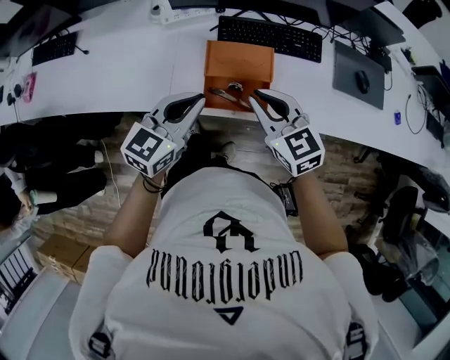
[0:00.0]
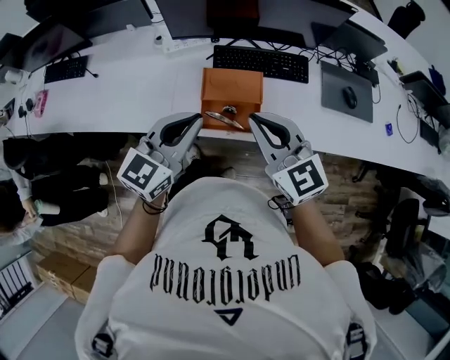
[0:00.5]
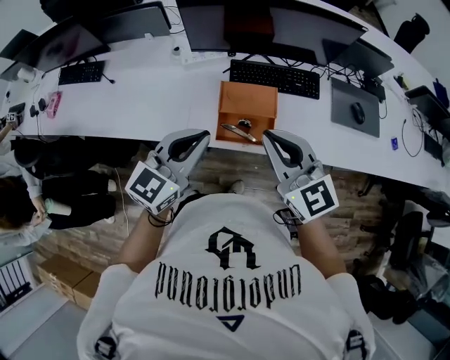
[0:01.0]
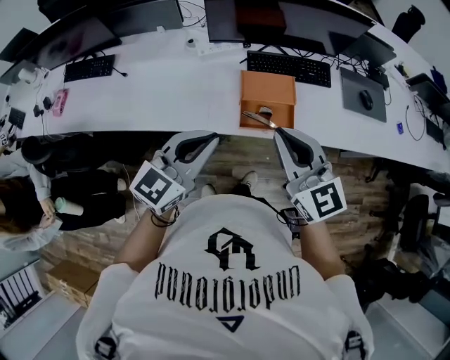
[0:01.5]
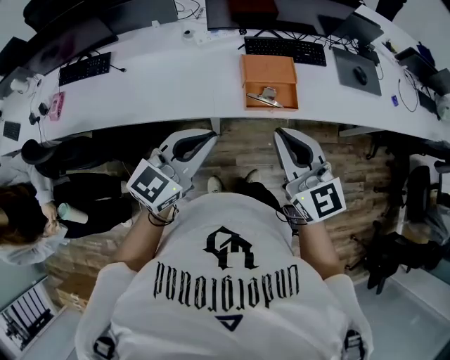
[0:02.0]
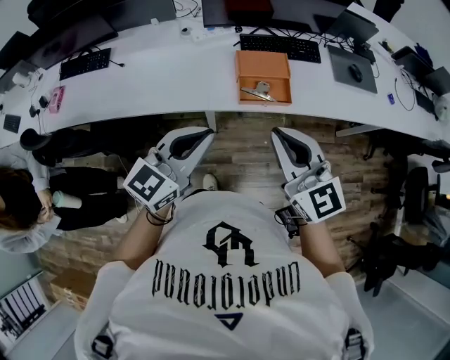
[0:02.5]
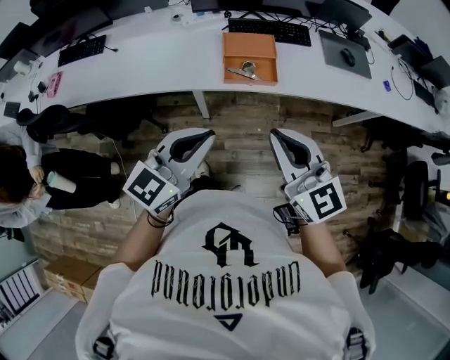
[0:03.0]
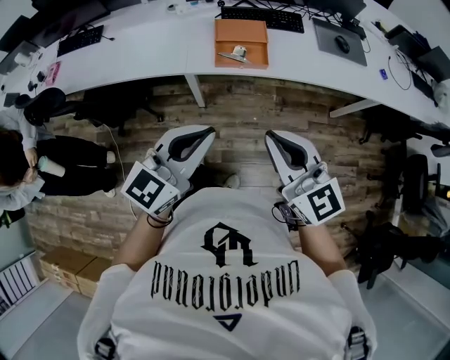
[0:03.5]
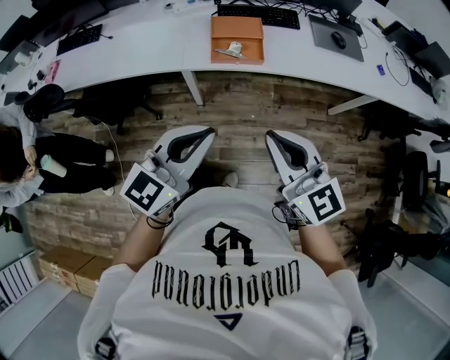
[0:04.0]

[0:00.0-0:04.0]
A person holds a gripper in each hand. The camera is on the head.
0:00.0 to 0:02.0: The left gripper heads backward, to the left and upward, covering roughly 25 cm; the right gripper travels backward, upward and to the left by roughly 25 cm, and changes its angle by approximately 20 degrees.
0:02.0 to 0:04.0: The two grippers go approximately 30 cm backward and to the right.

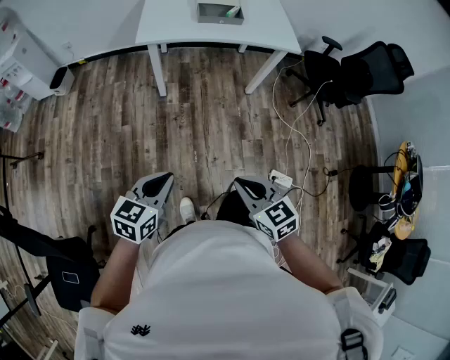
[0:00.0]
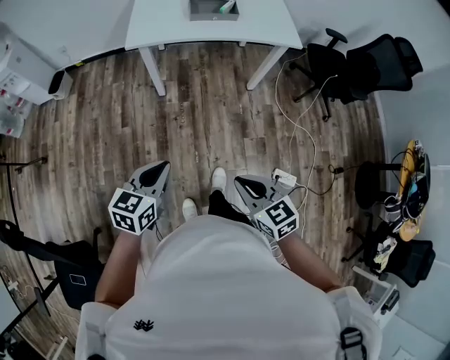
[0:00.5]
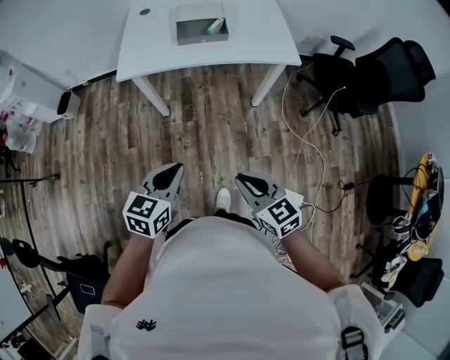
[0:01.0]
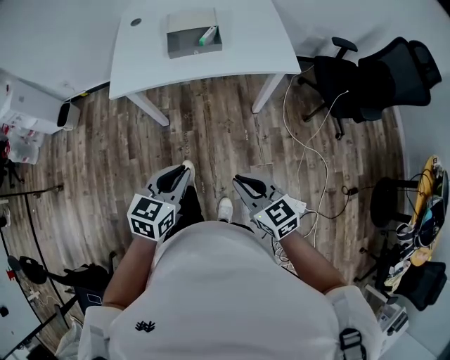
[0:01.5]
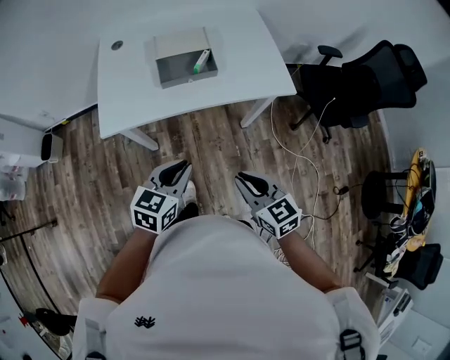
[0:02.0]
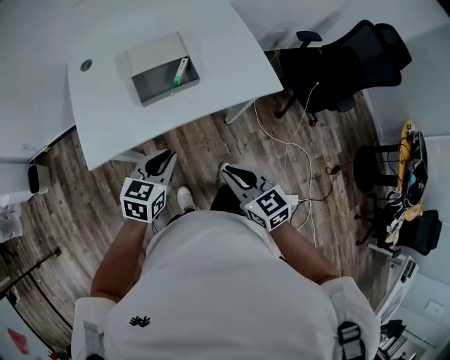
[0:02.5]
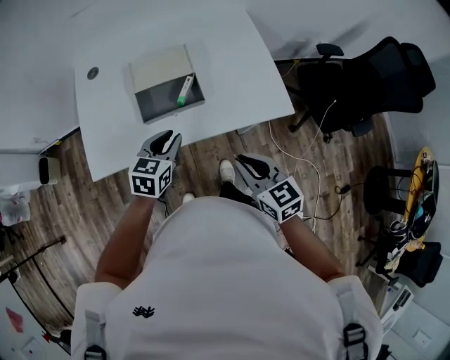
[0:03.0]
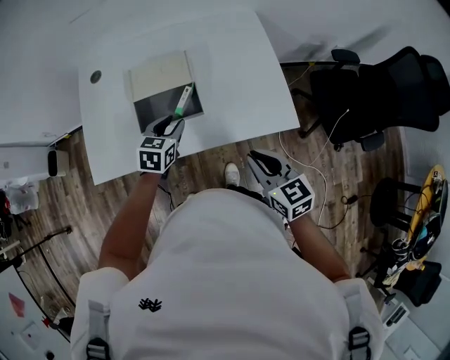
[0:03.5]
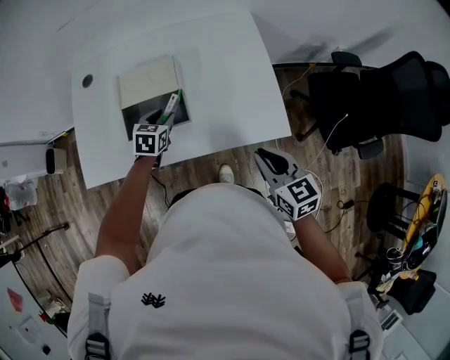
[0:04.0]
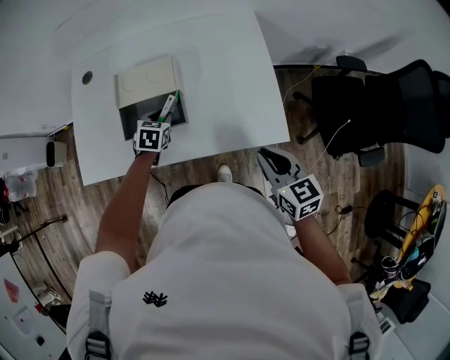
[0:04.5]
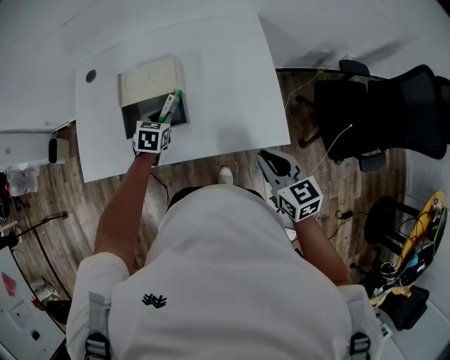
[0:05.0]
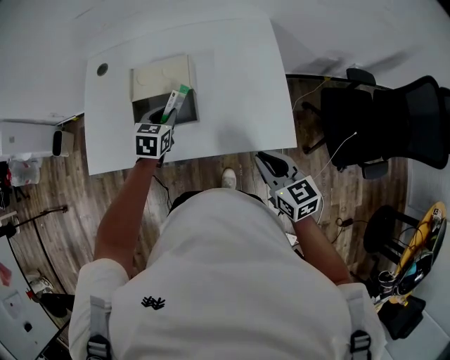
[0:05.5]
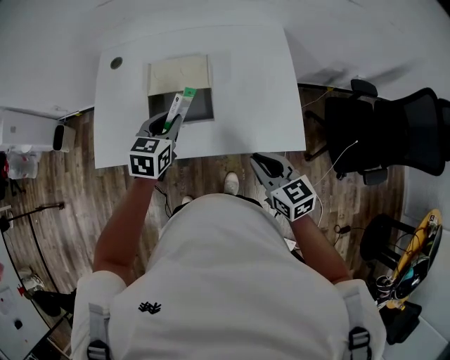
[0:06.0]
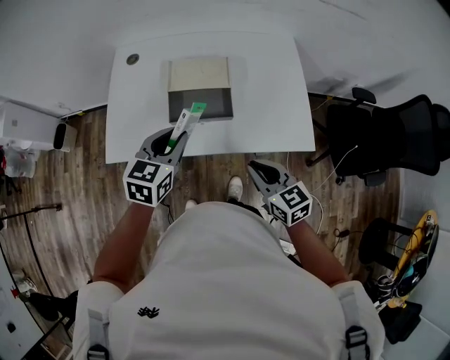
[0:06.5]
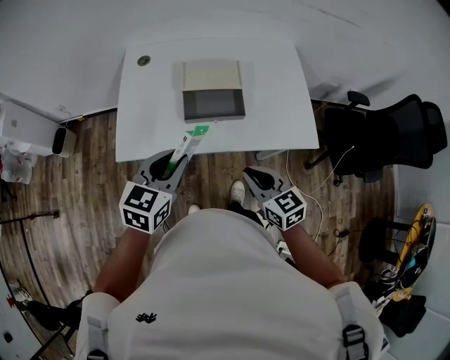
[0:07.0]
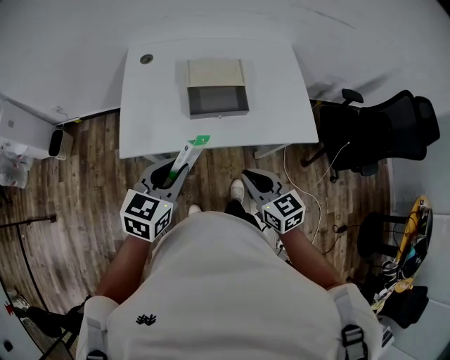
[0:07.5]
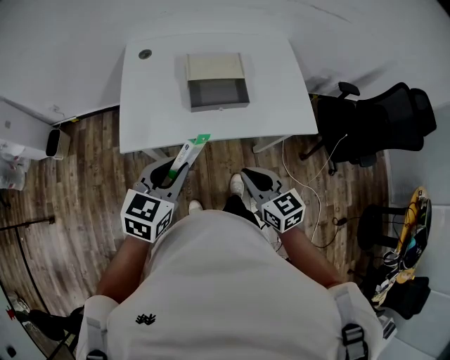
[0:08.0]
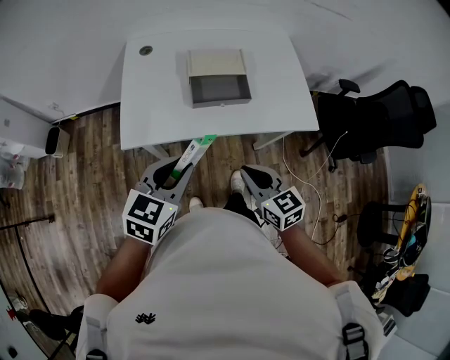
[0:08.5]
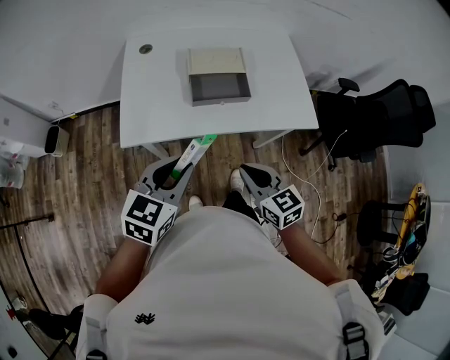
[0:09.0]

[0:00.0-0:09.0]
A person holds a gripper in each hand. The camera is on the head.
0:00.0 to 0:02.0: Both grippers travel together forward, about 35 cm.
0:02.0 to 0:04.5: The right gripper shifts approximately 35 cm forward and to the right; the left gripper is displaced forward and downward by approximately 40 cm, and changes its angle by approximately 30 degrees.
0:04.5 to 0:07.0: The right gripper travels to the left by approximately 20 cm. The left gripper travels upward, backward and to the left by roughly 35 cm, and rotates approximately 30 degrees.
0:07.0 to 0:09.0: The right gripper travels backward and to the left by about 10 cm. Meanwhile the left gripper travels backward by approximately 10 cm.

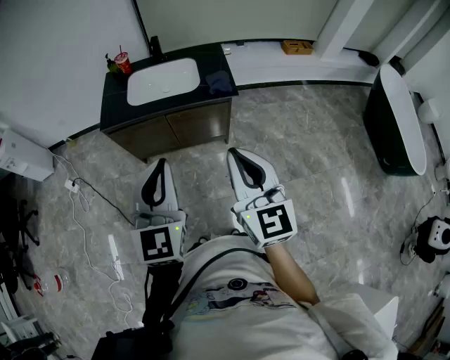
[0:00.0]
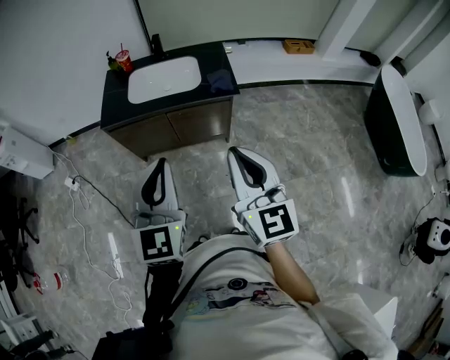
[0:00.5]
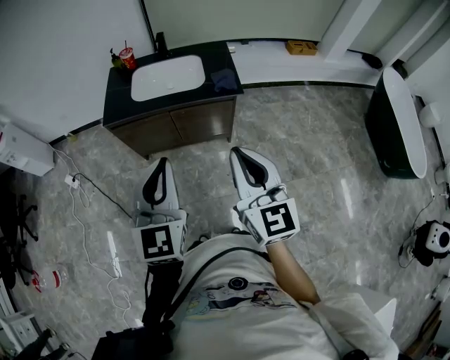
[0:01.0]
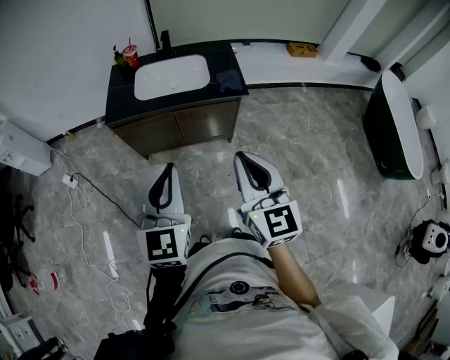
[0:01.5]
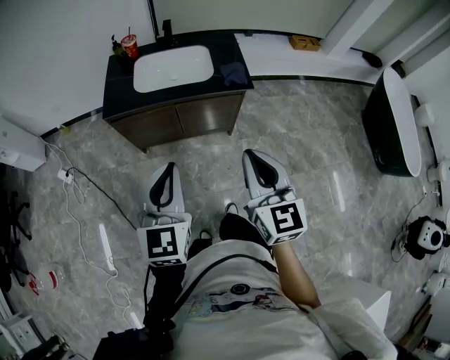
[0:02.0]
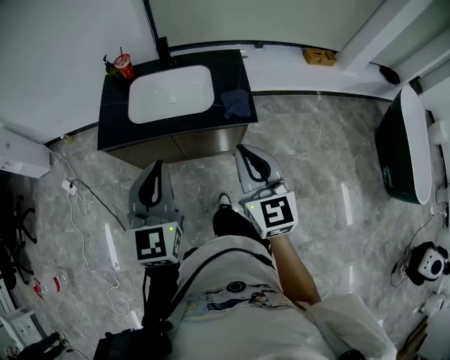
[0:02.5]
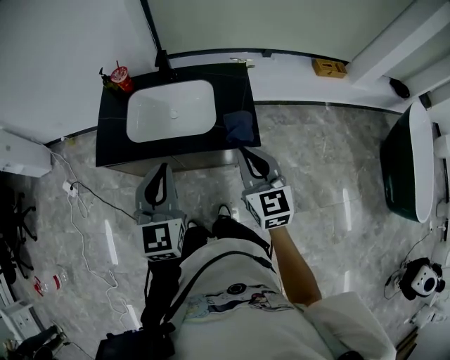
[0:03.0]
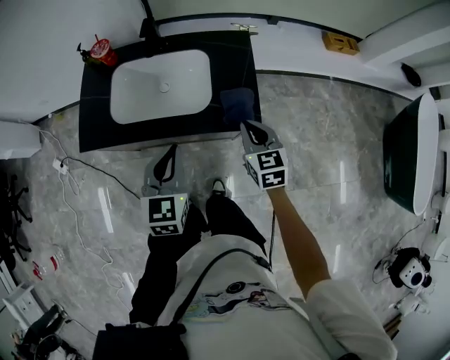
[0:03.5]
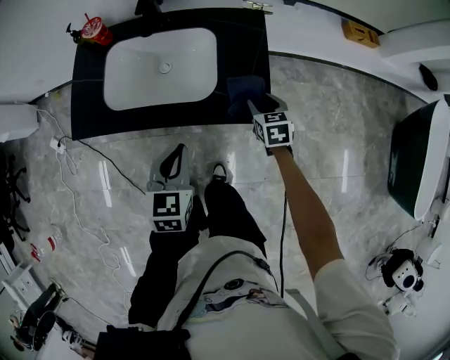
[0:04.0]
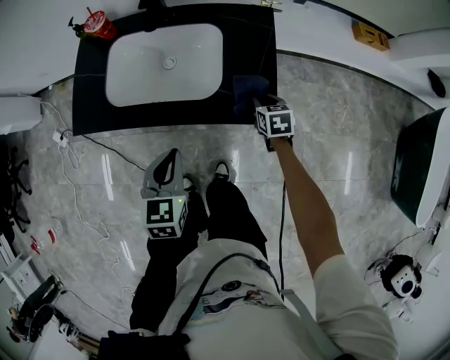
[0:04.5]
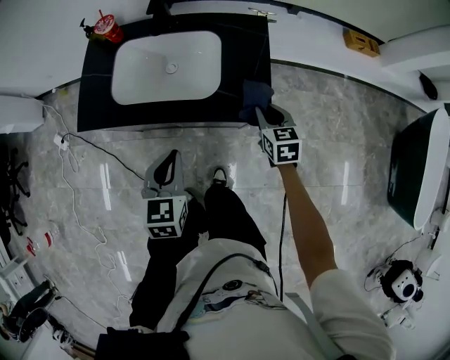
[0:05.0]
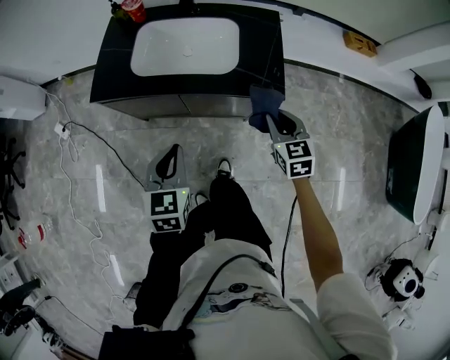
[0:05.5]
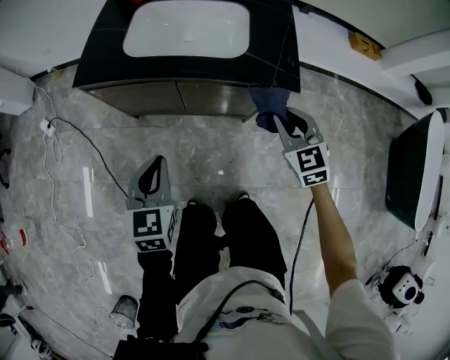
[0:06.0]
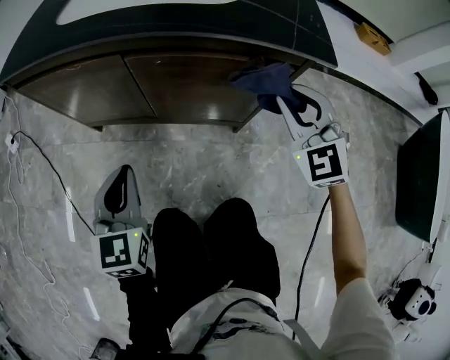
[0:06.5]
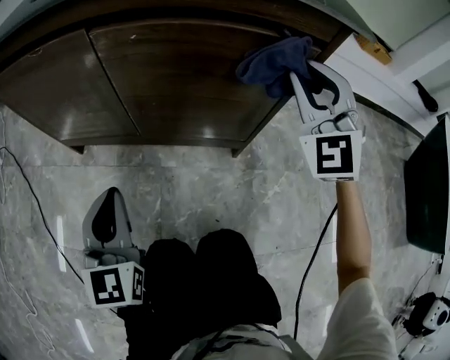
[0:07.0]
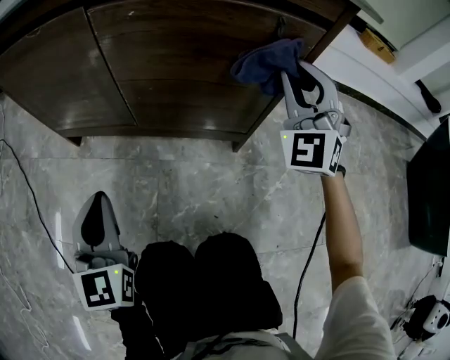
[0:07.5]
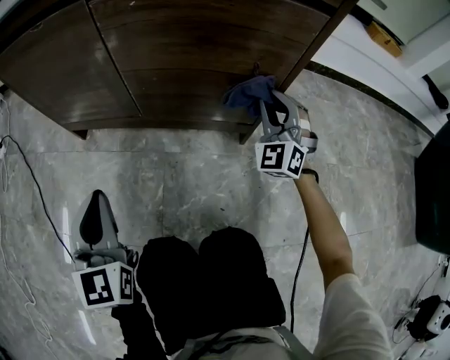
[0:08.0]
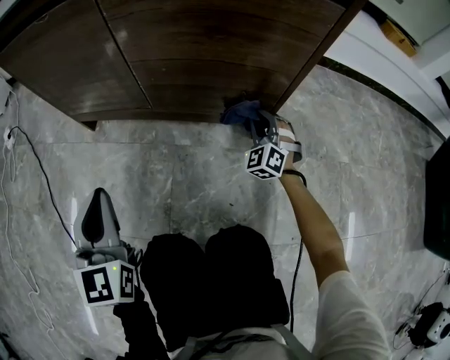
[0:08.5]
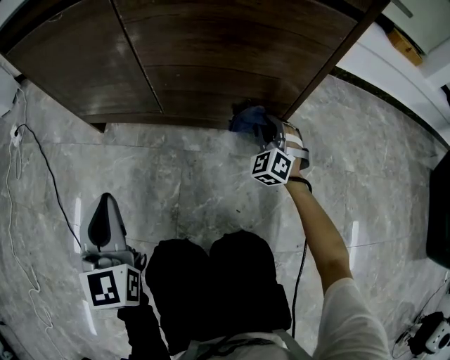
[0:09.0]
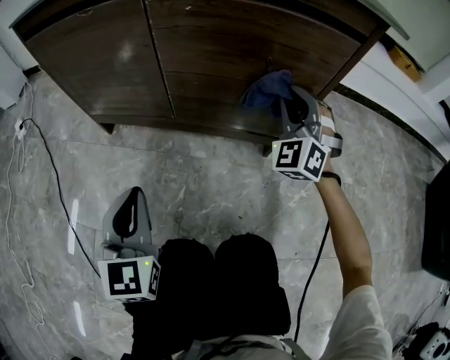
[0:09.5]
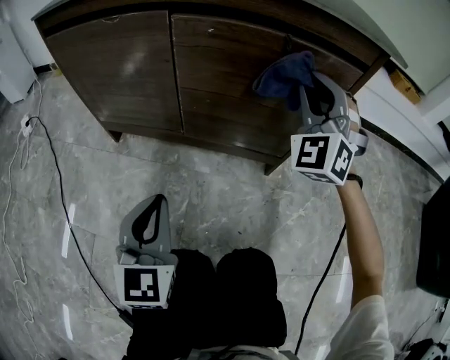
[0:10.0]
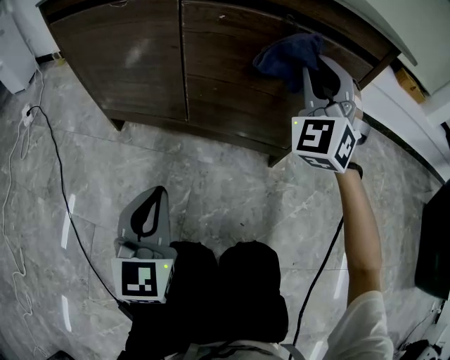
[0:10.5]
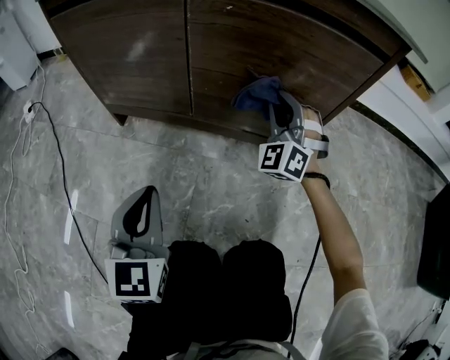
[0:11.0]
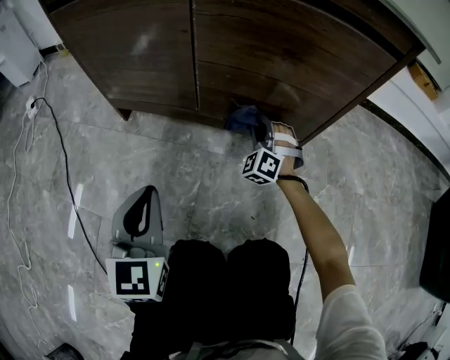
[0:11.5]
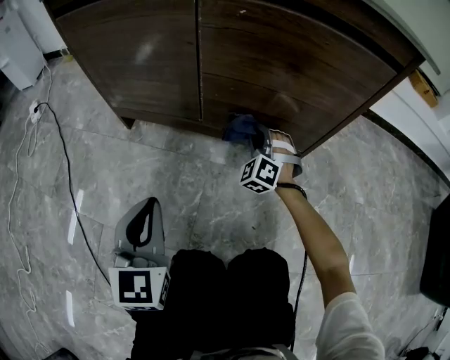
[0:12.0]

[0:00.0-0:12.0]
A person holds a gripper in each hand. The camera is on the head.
0:00.0 to 0:02.0: The right gripper heads downward, covering approximately 5 cm. Meanwhile the left gripper goes approximately 10 cm to the left and downward.
0:02.0 to 0:04.0: The left gripper shifts some 40 cm forward, downward and to the right, and changes its angle by roughly 30 degrees. Meanwhile the right gripper shifts roughly 60 cm forward and downward, tips its fingers downward by roughly 40 degrees, and opens.
0:04.0 to 0:06.0: The grippers both shift backward and to the left by about 20 cm. The right gripper changes its angle by some 40 degrees, and closes up.
0:06.0 to 0:08.0: The grippers both shift downward by roughly 40 cm. The left gripper changes its angle by about 20 degrees. Meanwhile the right gripper changes its angle by roughly 40 degrees.
0:08.0 to 0:10.0: The right gripper is displaced upward and to the left by about 20 cm.
0:10.0 to 0:12.0: The right gripper travels downward by approximately 30 cm, and swivels approximately 20 degrees. The left gripper is displaced to the left by approximately 5 cm.

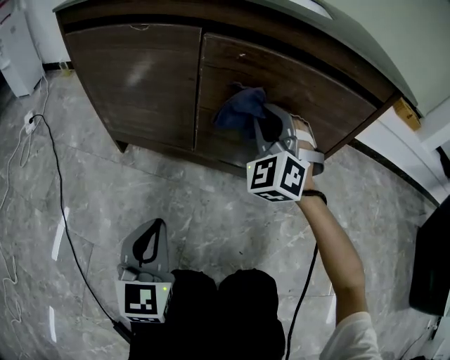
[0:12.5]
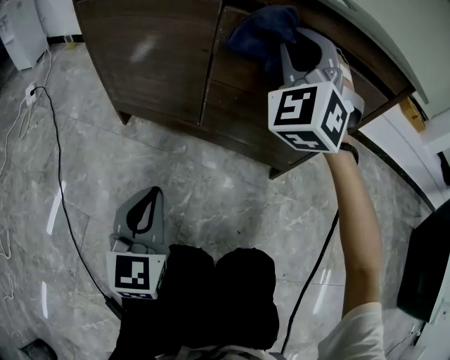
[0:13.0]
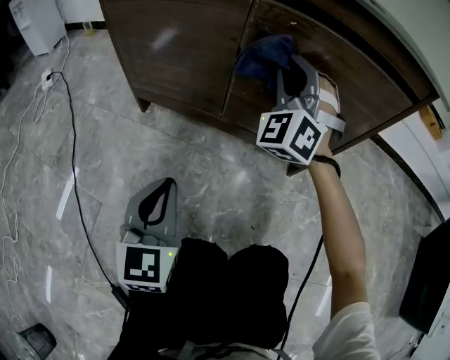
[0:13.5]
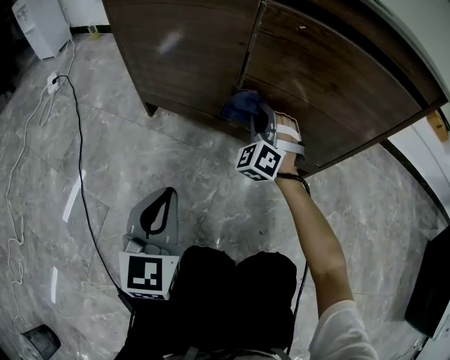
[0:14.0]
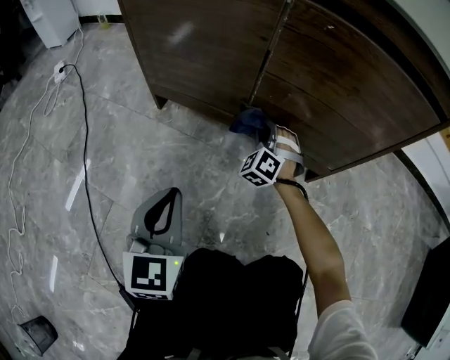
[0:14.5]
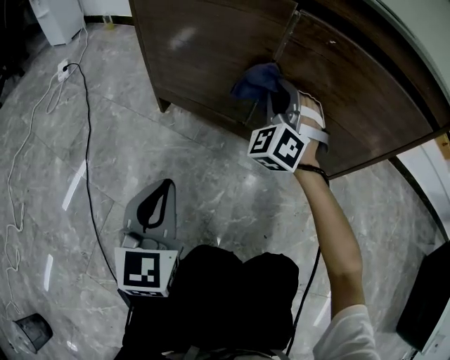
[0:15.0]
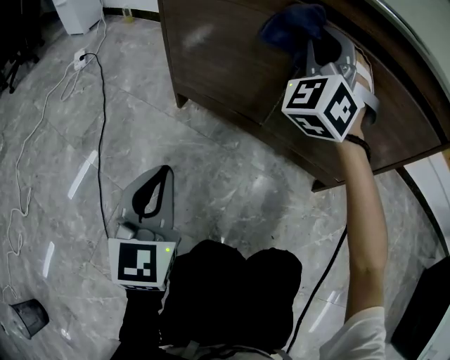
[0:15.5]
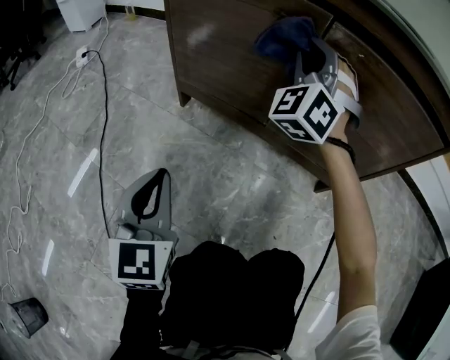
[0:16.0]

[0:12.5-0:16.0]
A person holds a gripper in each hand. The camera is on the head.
0:12.5 to 0:14.5: The right gripper goes some 25 cm downward. The left gripper is displaced to the left by about 5 cm.
0:14.5 to 0:16.0: The left gripper shifts approximately 10 cm to the left; the right gripper moves upward, approximately 30 cm, and swivels about 30 degrees.
